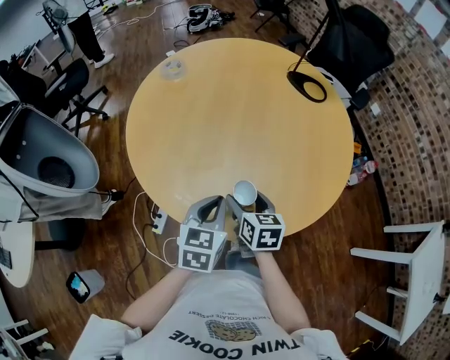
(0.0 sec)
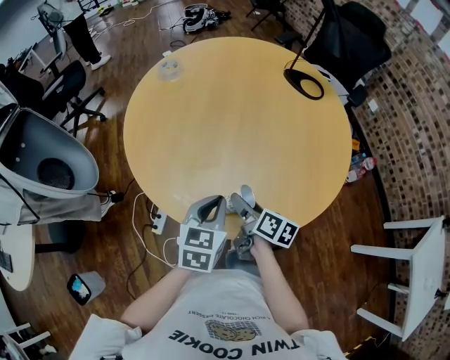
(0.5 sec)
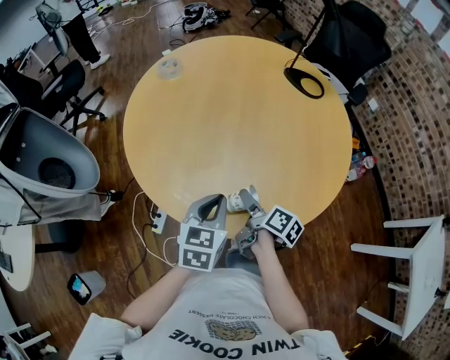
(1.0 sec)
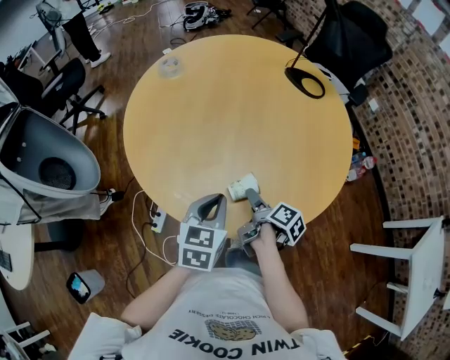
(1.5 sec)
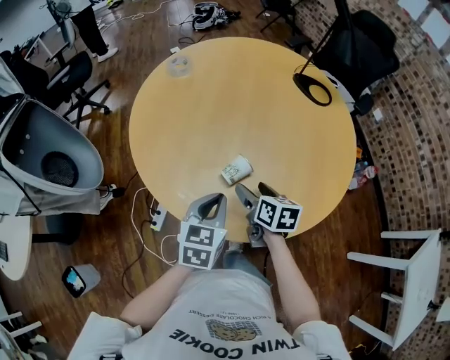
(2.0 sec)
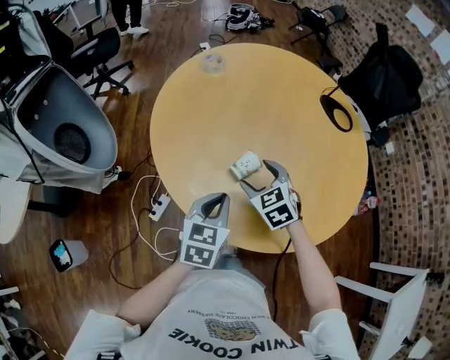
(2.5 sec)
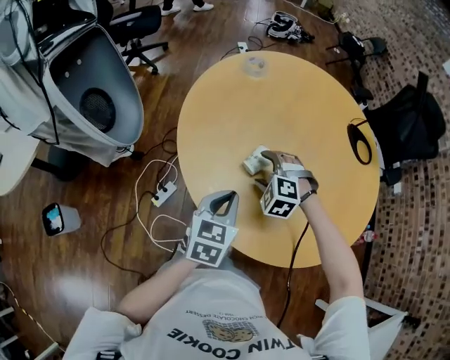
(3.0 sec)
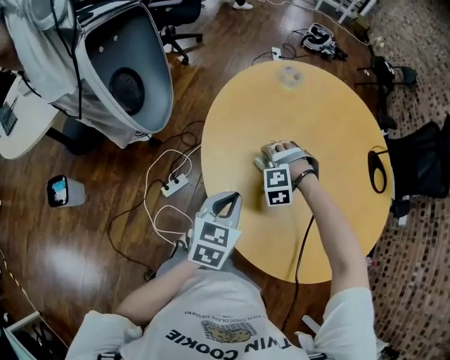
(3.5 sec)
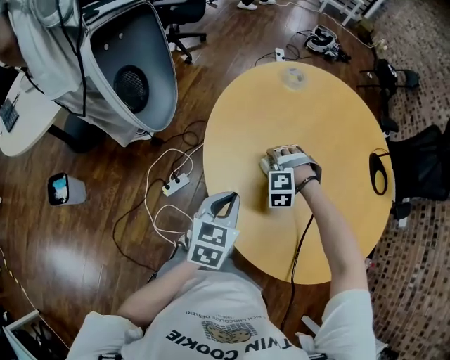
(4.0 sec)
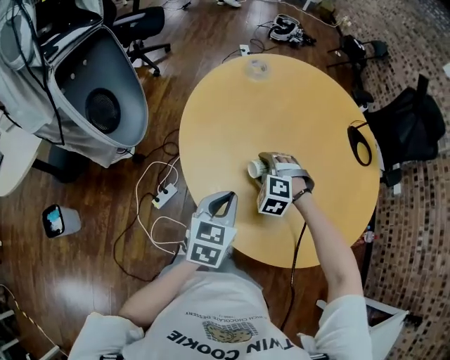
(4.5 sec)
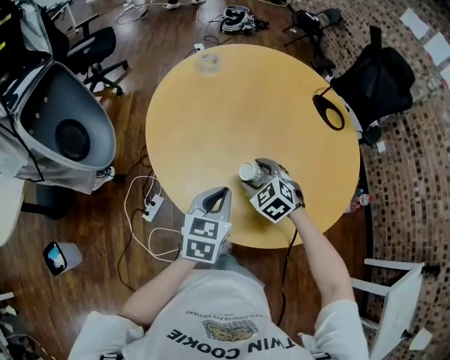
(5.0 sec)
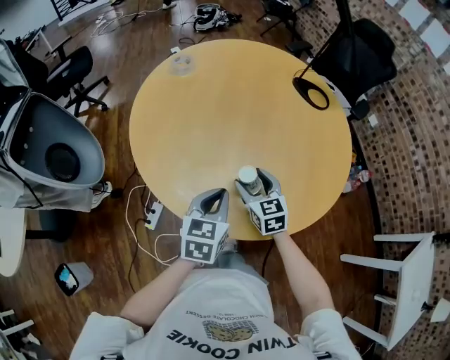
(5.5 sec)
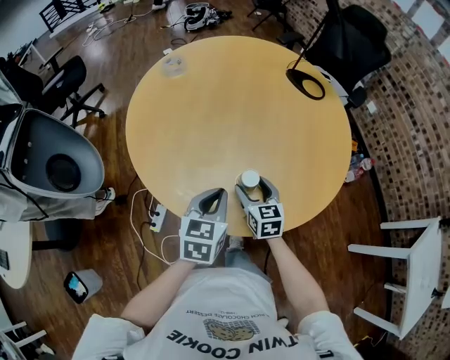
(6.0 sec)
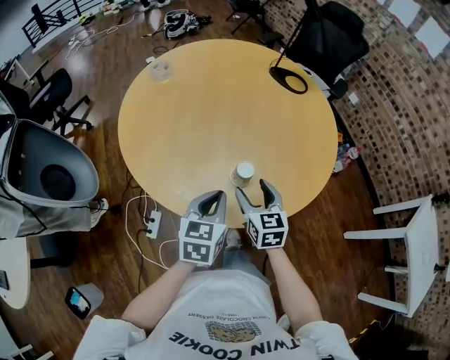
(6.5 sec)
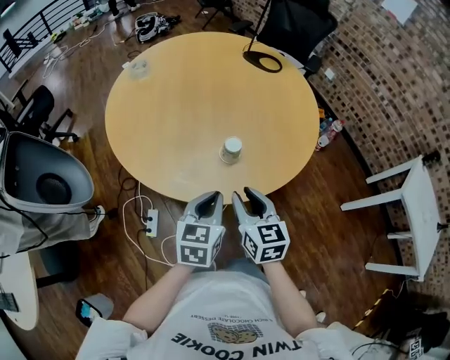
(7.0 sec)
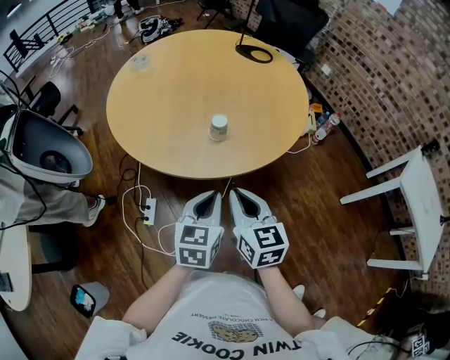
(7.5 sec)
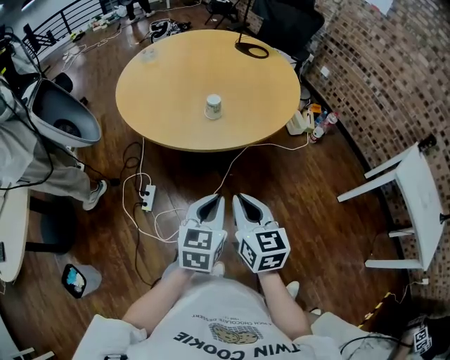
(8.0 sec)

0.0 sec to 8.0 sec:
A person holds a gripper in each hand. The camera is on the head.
2.0 sec to 4.0 sec: The right gripper is displaced to the left and forward by roughly 20 cm, and rolls counterclockwise, seen from behind, by approximately 140 degrees, while the left gripper heads to the left, covering roughly 15 cm, and turns by about 30 degrees.
4.0 sec to 6.0 sec: The right gripper shifts roughly 25 cm to the right and backward, and twists about 120 degrees clockwise, seen from behind, while the left gripper is displaced to the right by approximately 15 cm, and swivels some 30 degrees.
6.0 sec to 8.0 sec: The two grippers go about 40 cm backward. The right gripper closes.

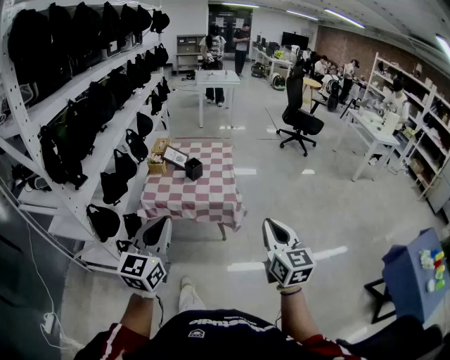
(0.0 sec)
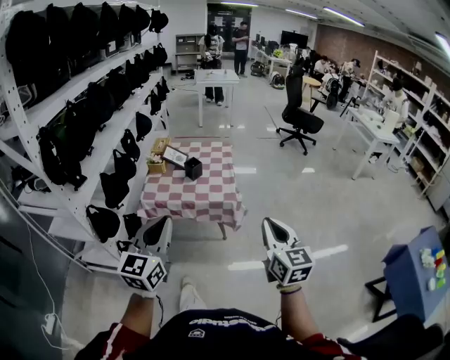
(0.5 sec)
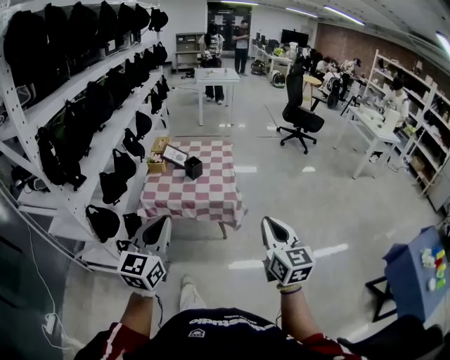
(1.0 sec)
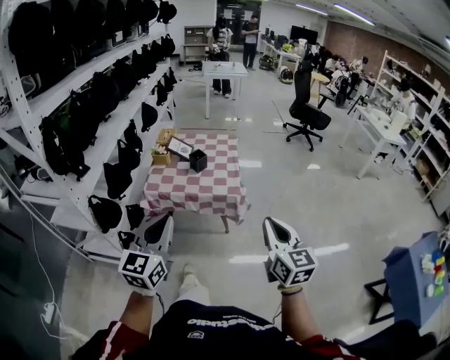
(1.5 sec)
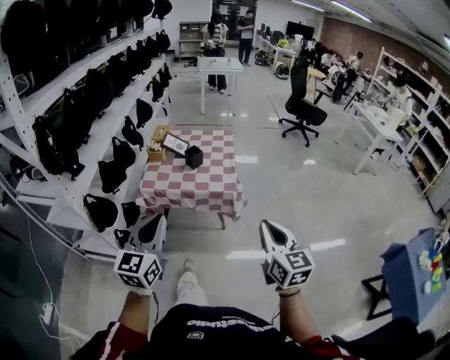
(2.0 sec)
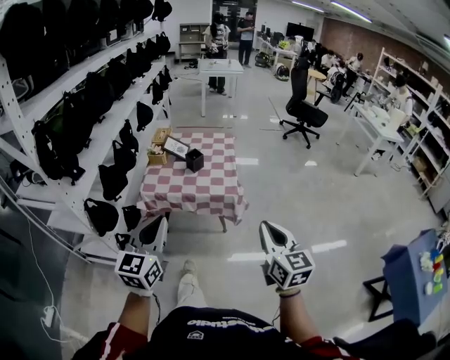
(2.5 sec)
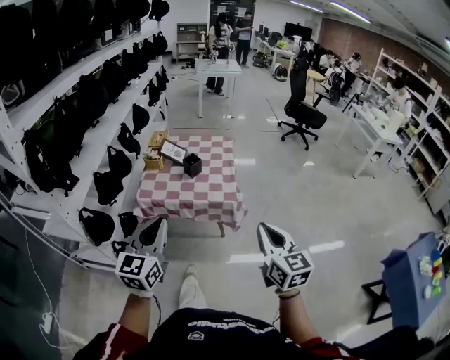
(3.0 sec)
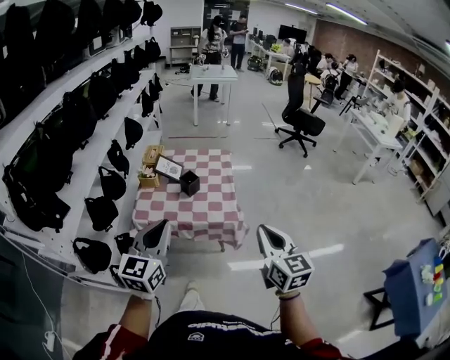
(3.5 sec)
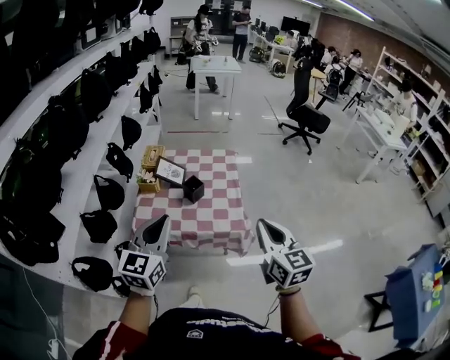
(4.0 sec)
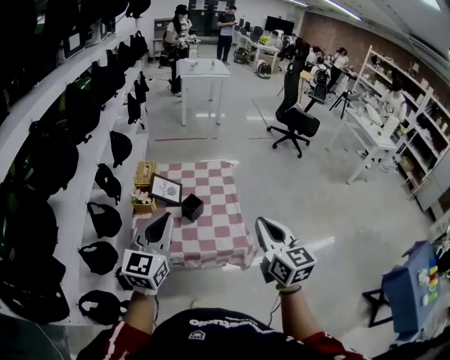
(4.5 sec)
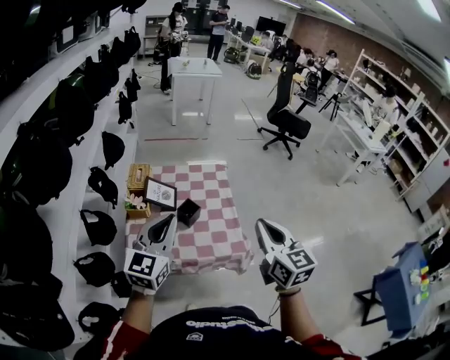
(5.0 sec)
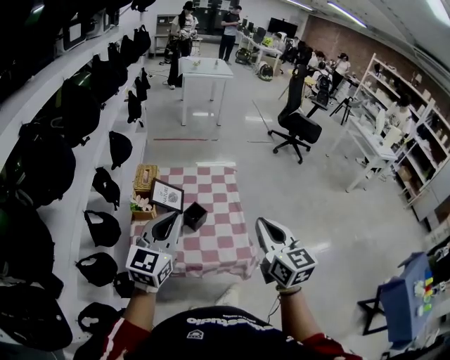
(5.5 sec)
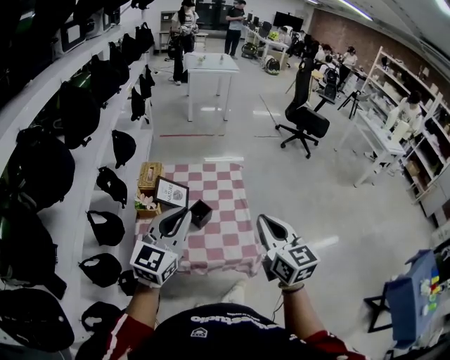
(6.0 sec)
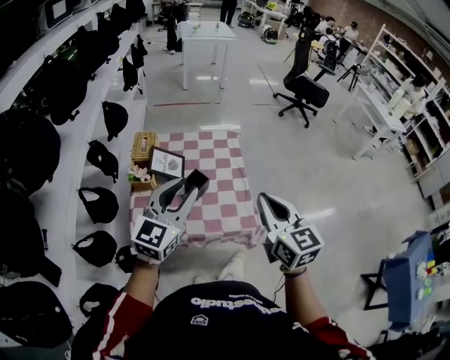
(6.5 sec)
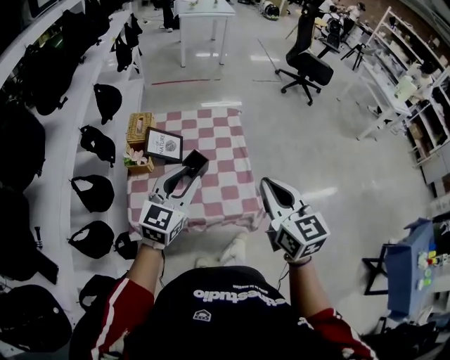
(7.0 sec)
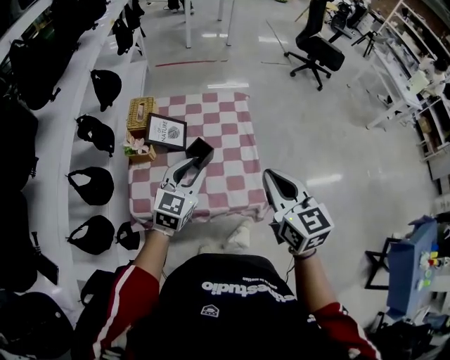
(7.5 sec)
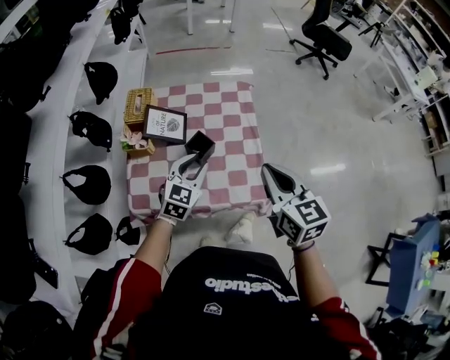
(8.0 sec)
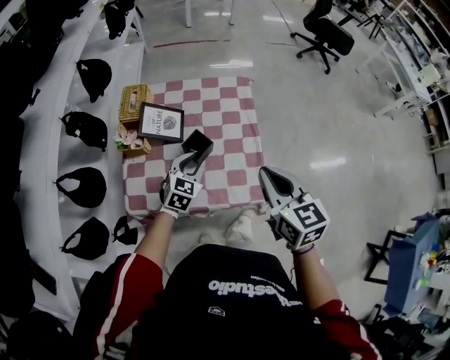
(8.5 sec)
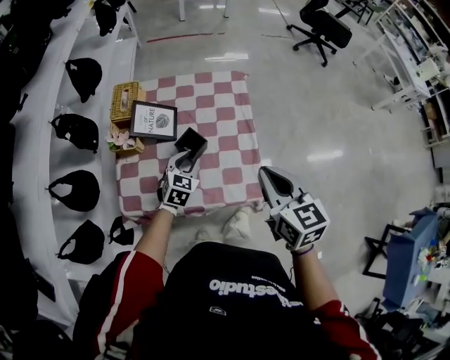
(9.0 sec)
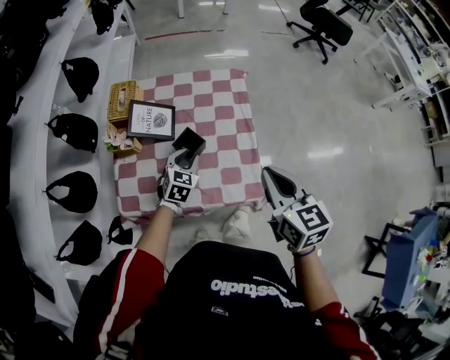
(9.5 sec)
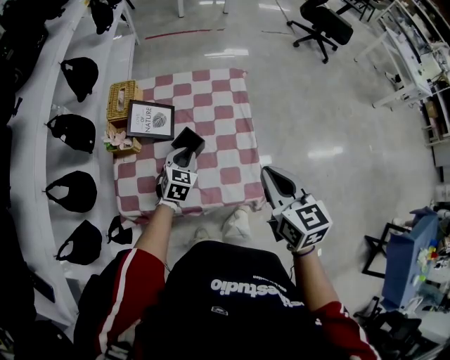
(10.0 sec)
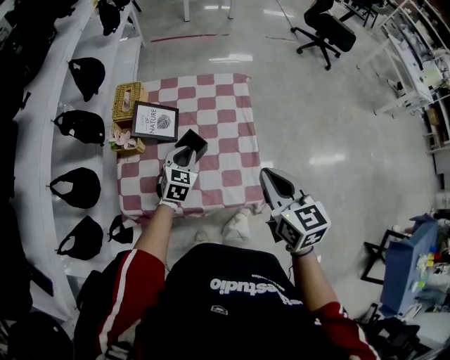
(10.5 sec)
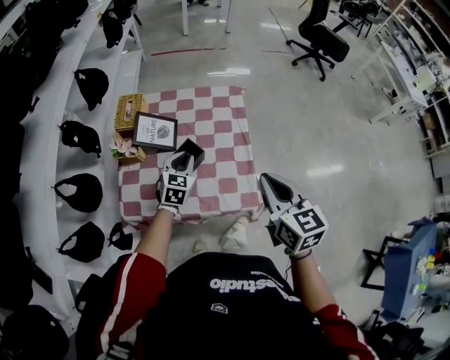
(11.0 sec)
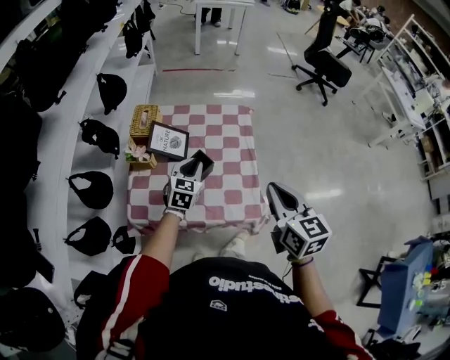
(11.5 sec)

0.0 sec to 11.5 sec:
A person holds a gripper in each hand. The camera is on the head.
0.0 sec to 2.0 sec: The grippers stay close to where they were, moving slightly.
2.0 sec to 4.0 sec: The two grippers go about 25 cm forward.
4.0 sec to 6.0 sec: The left gripper shifts roughly 20 cm forward, while the right gripper moves forward and to the left, approximately 20 cm.
6.0 sec to 7.5 sec: The right gripper travels downward by about 5 cm. Meanwhile the left gripper is displaced downward and forward by some 20 cm, and opens up.
7.5 sec to 9.5 sec: The left gripper travels downward and forward by approximately 20 cm, and changes its angle by approximately 20 degrees. The right gripper travels downward and forward by some 10 cm.
9.5 sec to 11.5 sec: The right gripper travels upward by some 5 cm; the left gripper goes about 10 cm upward.

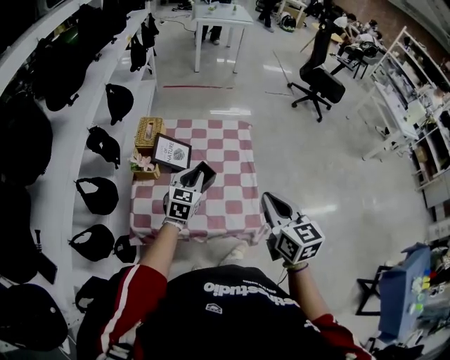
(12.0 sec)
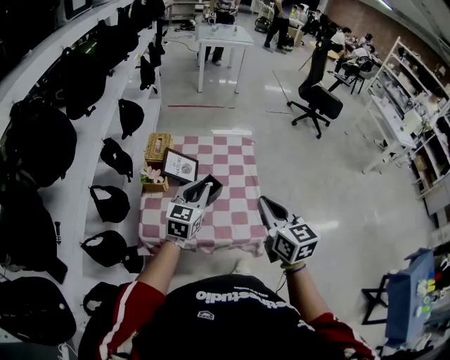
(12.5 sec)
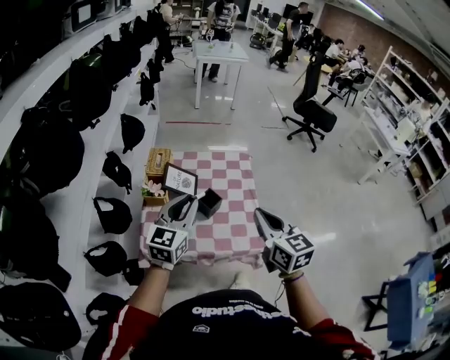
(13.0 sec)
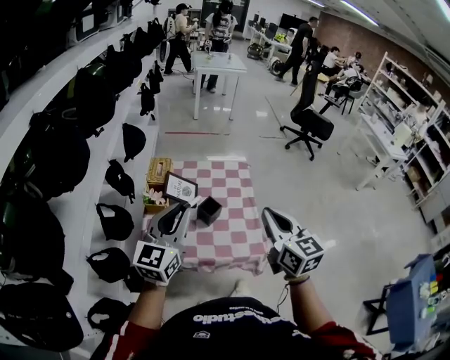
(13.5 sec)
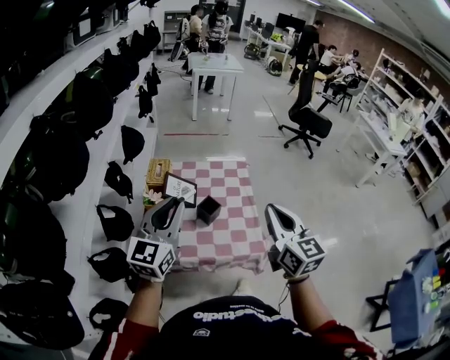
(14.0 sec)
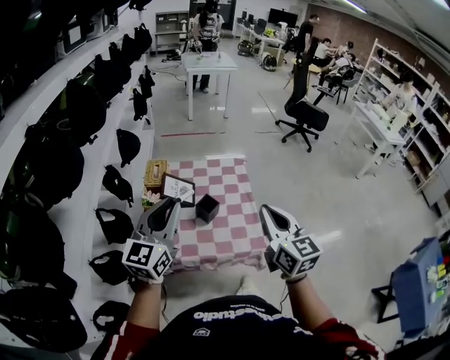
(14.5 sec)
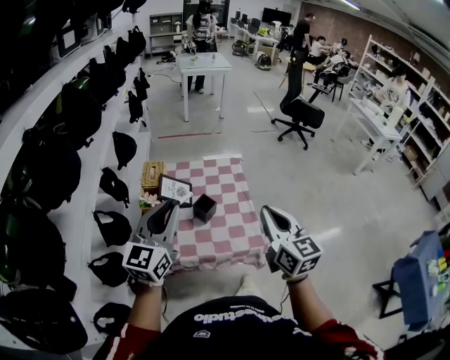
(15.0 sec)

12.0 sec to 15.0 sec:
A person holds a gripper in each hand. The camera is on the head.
12.0 sec to 13.5 sec: The right gripper moves upward, roughly 10 cm; the left gripper travels upward and backward by roughly 25 cm, and rotates approximately 30 degrees.
13.5 sec to 15.0 sec: There are only small adjustments of the grippers.

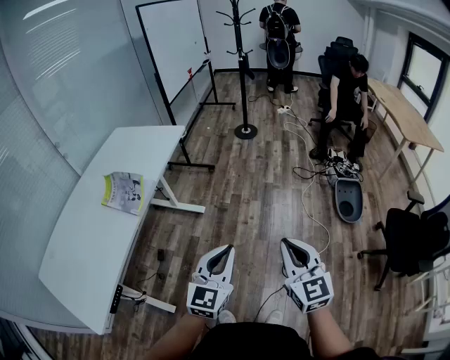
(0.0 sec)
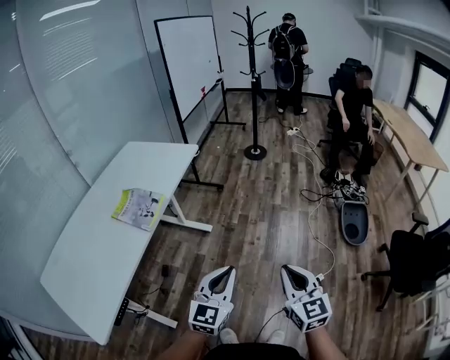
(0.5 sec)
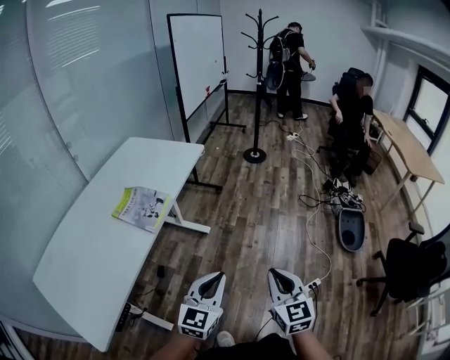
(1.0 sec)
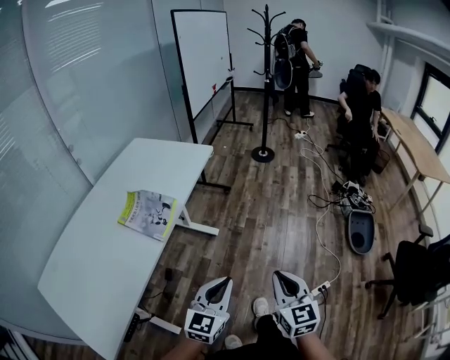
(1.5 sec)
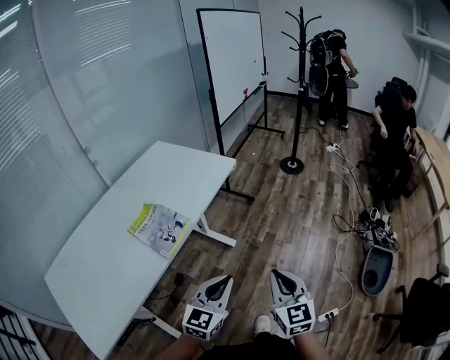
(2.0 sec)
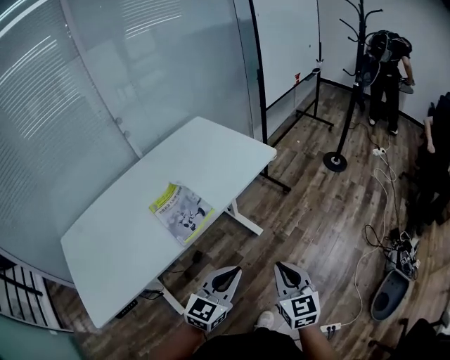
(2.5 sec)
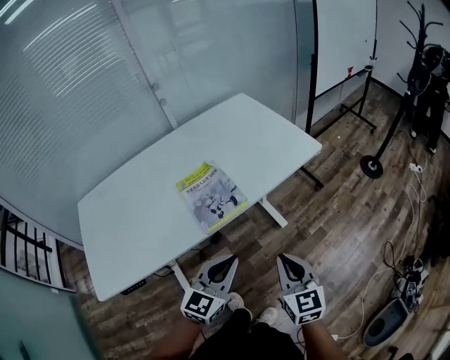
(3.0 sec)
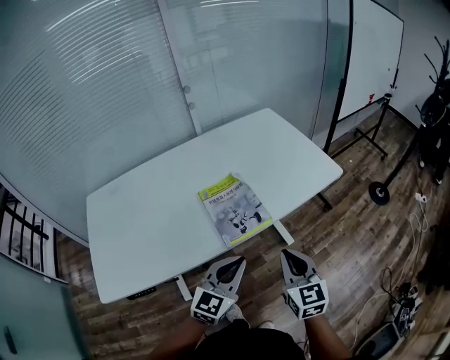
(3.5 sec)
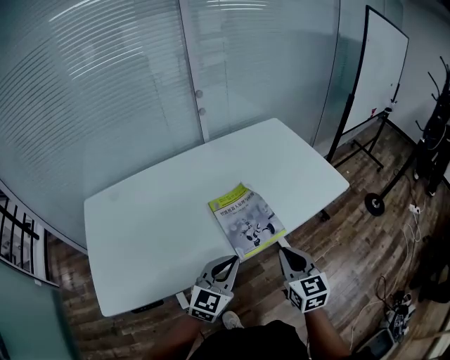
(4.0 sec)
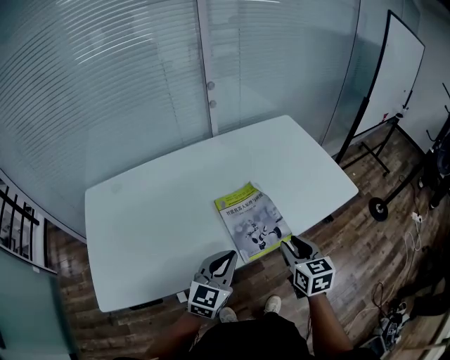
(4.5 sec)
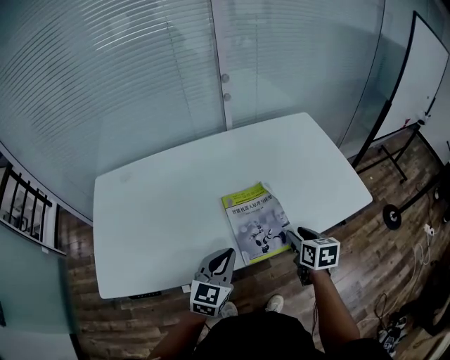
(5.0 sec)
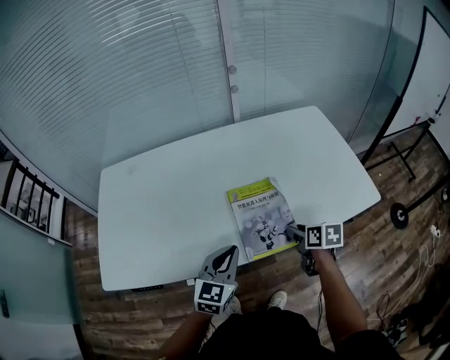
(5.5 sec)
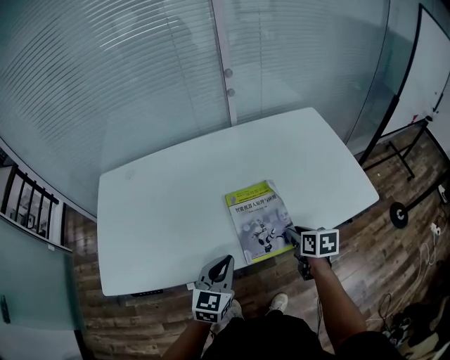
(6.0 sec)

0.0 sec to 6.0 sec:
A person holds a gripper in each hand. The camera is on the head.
0.0 sec to 2.0 sec: The right gripper shifts approximately 25 cm forward and to the left; the left gripper shifts some 20 cm to the left and forward.
2.0 sec to 4.0 sec: The left gripper changes place by about 25 cm, and rotates roughly 30 degrees, while the right gripper ends up roughly 30 cm from where it was, and turns by roughly 40 degrees.
4.0 sec to 6.0 sec: The right gripper moves forward and downward, about 20 cm, turns by approximately 40 degrees, and opens. The left gripper ends up roughly 5 cm from where it was, and swivels about 30 degrees.
